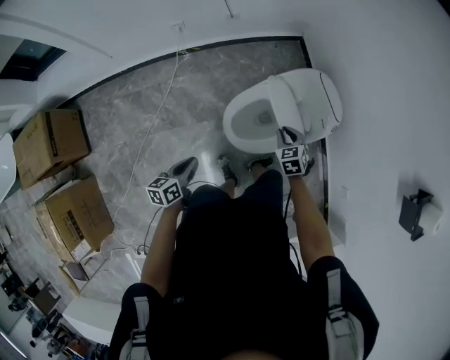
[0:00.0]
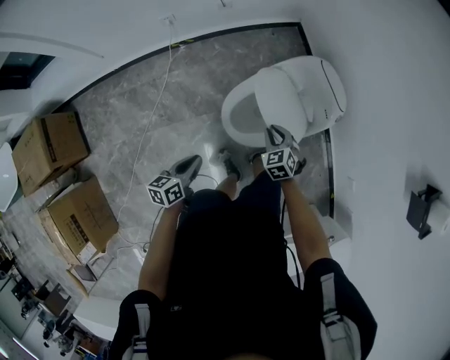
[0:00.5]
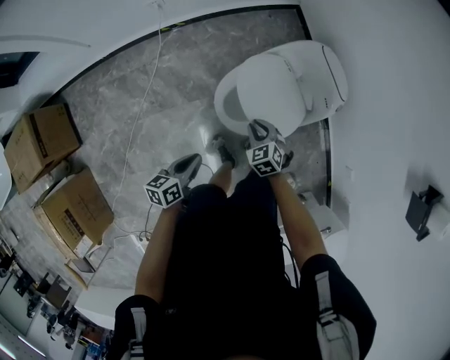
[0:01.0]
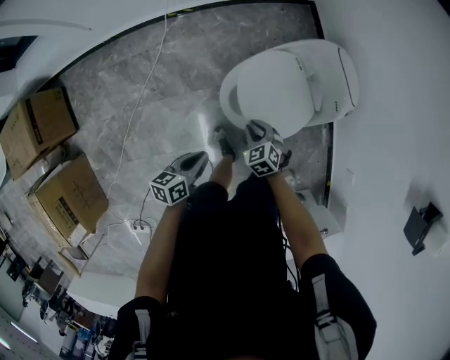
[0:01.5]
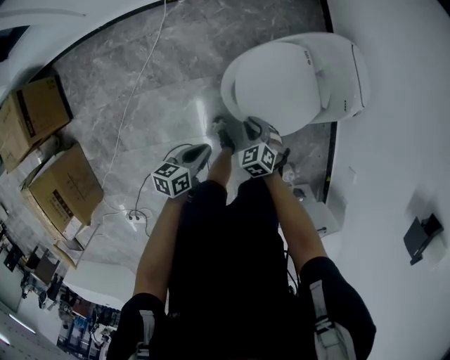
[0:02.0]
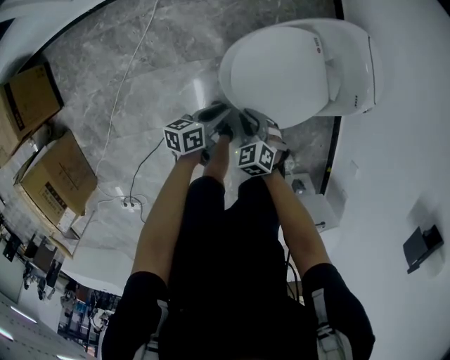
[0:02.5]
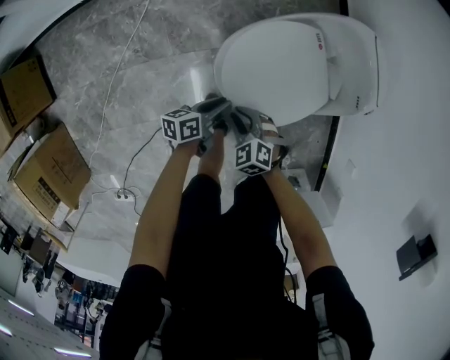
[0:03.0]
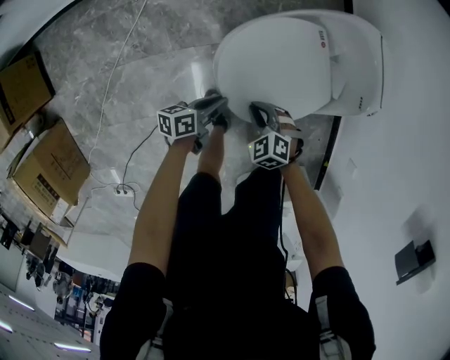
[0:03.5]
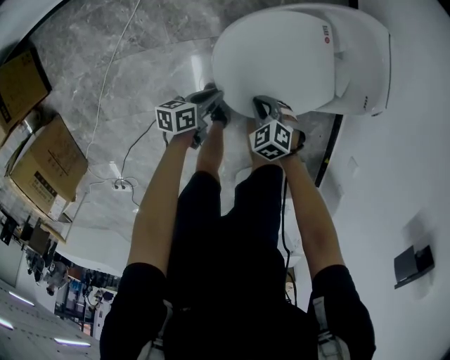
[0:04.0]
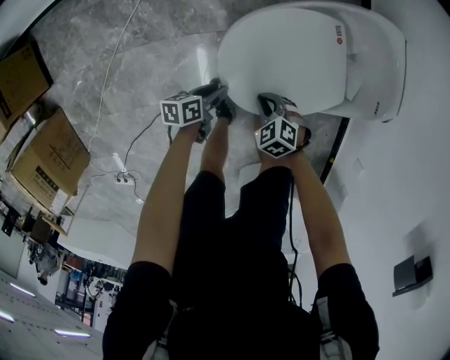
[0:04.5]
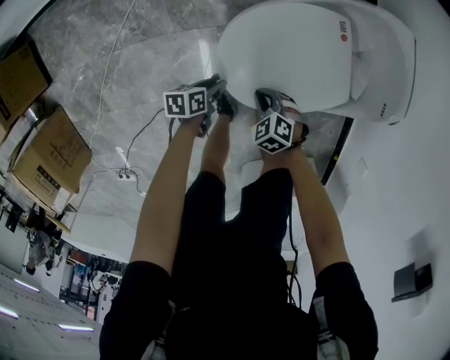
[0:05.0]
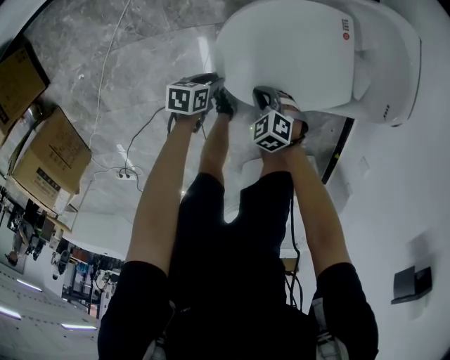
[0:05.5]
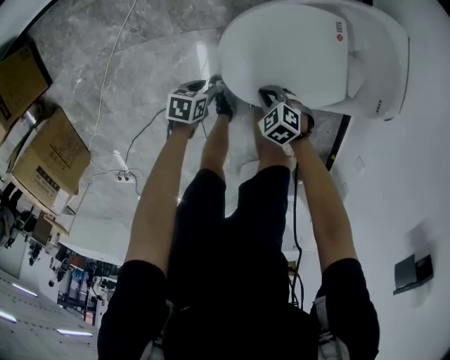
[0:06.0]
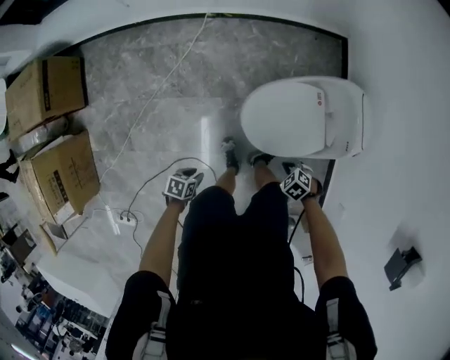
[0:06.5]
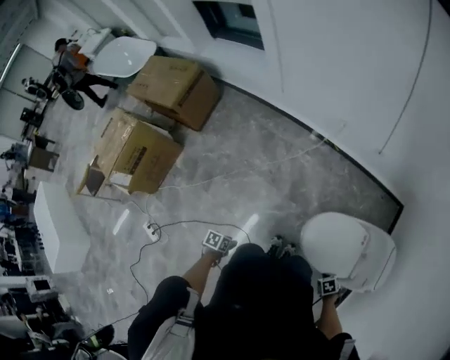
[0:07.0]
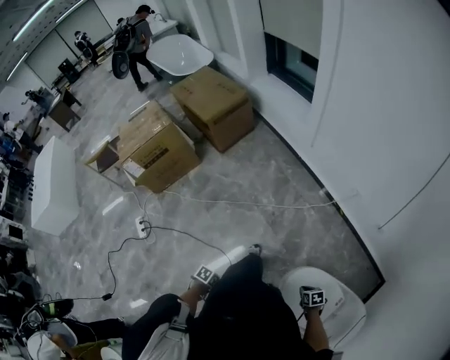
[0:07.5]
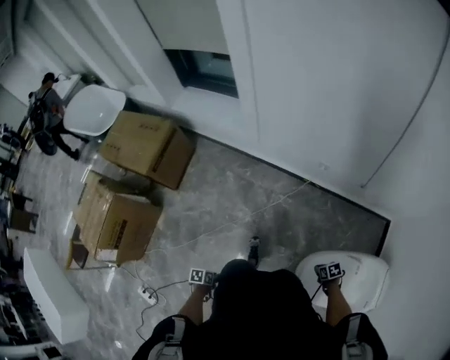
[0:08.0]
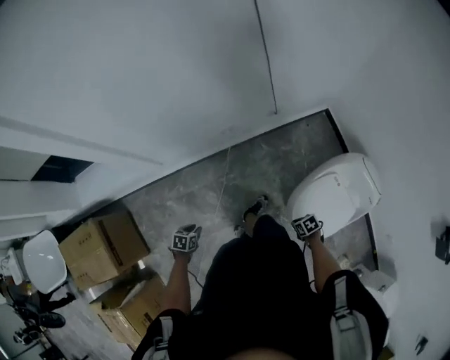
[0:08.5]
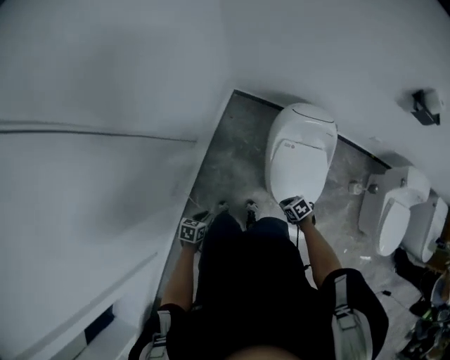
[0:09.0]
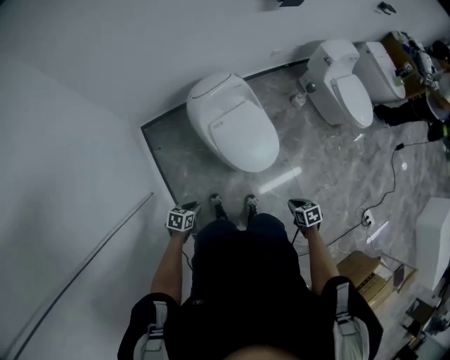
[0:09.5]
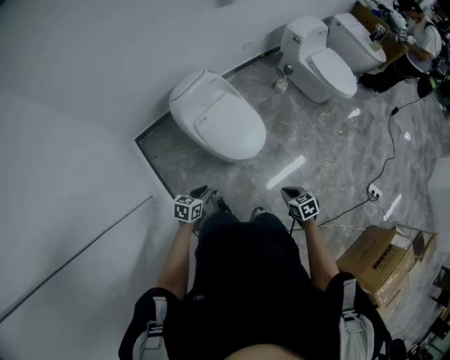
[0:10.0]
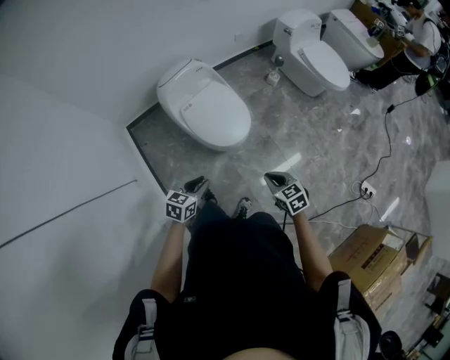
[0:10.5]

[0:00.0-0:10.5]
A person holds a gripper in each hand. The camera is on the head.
0:00.0 to 0:02.0: The left gripper goes some 15 cm downward and to the right, while the right gripper is displaced downward, to the left and backward by about 20 cm, and swivels some 20 degrees.
0:02.0 to 0:04.0: The right gripper travels downward by approximately 10 cm, while the left gripper shifts some 20 cm downward and forward.
0:04.0 to 0:06.5: The right gripper shifts some 10 cm upward; the left gripper shifts by some 30 cm, and rotates approximately 30 degrees.
0:06.5 to 0:08.5: The right gripper ends up about 35 cm from where it was, and twists some 60 degrees clockwise, seen from behind, while the left gripper changes place by some 60 cm, and rotates about 20 degrees.
0:08.5 to 0:10.5: The right gripper shifts about 20 cm upward, and changes its angle by roughly 100 degrees; the left gripper shifts by some 40 cm, and rolls clockwise, seen from behind, by about 90 degrees.

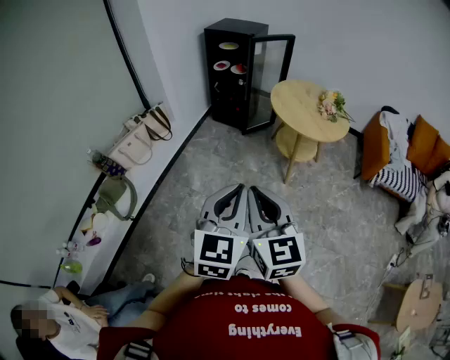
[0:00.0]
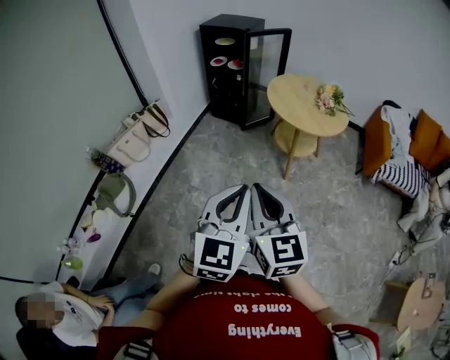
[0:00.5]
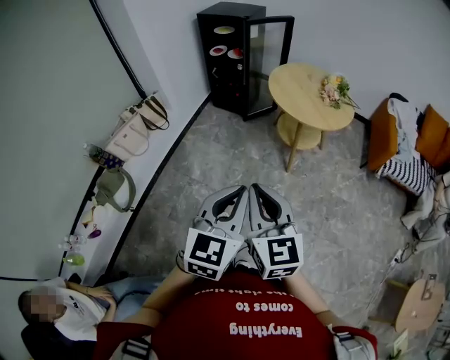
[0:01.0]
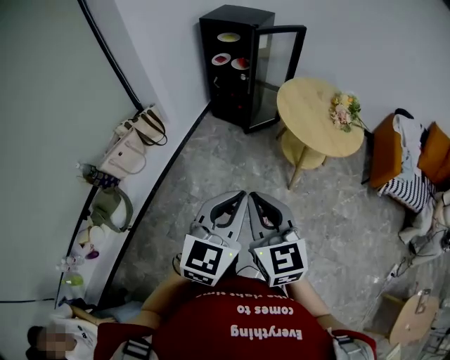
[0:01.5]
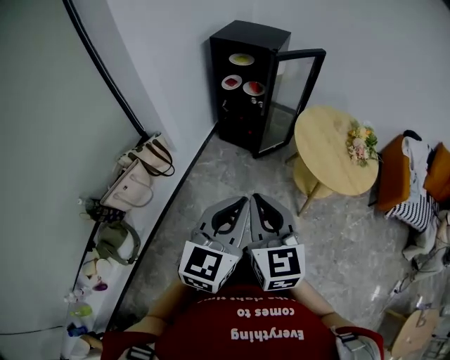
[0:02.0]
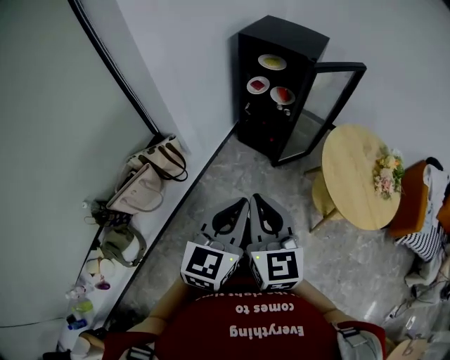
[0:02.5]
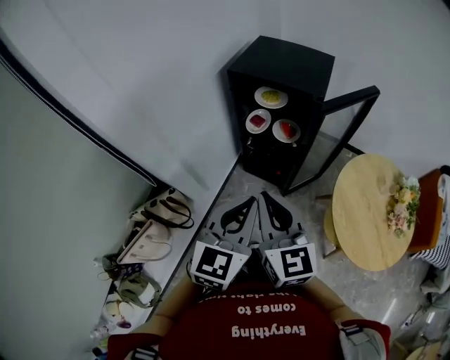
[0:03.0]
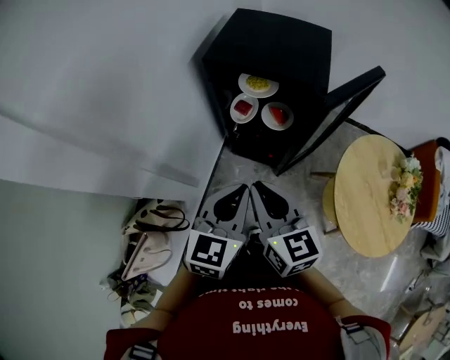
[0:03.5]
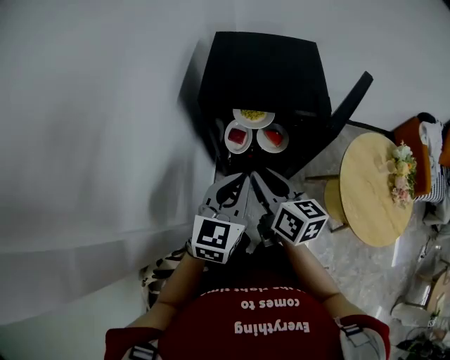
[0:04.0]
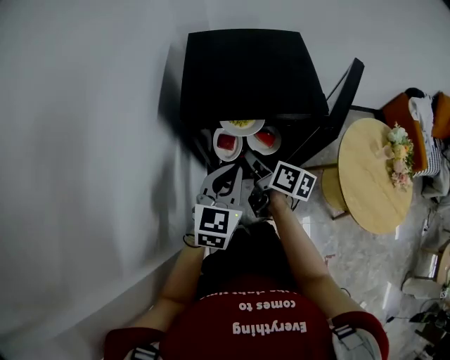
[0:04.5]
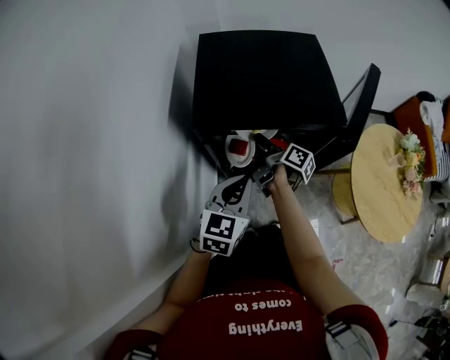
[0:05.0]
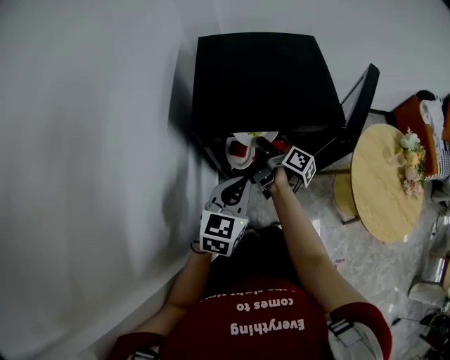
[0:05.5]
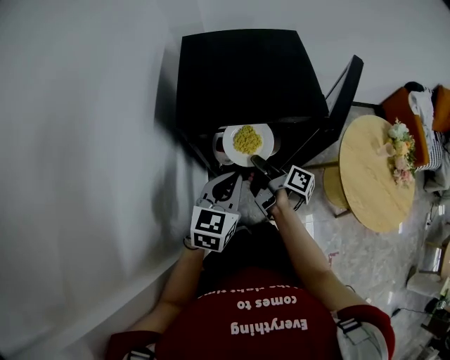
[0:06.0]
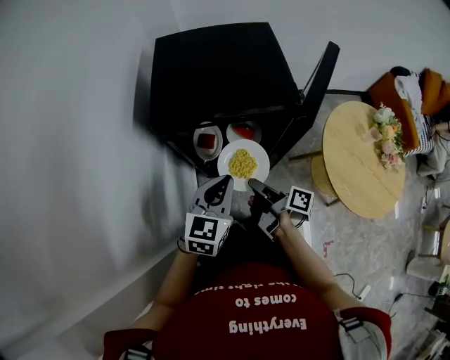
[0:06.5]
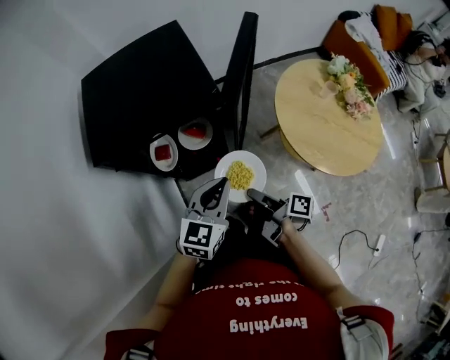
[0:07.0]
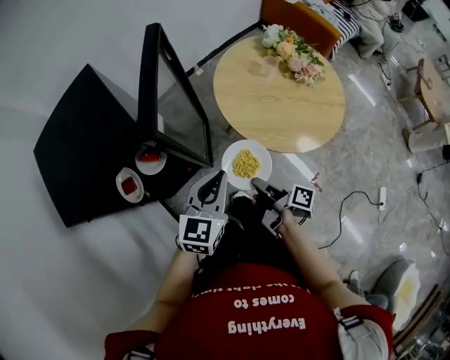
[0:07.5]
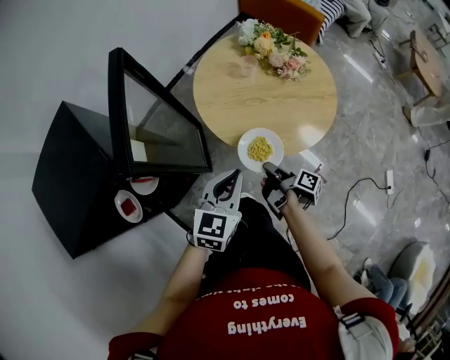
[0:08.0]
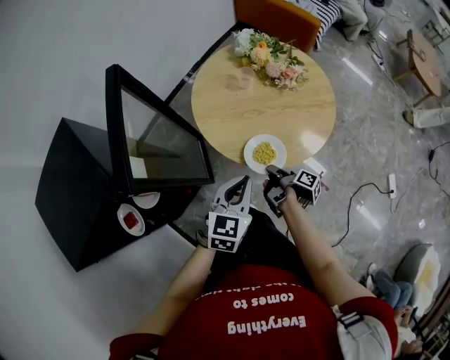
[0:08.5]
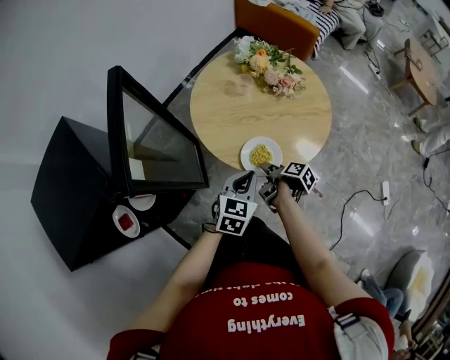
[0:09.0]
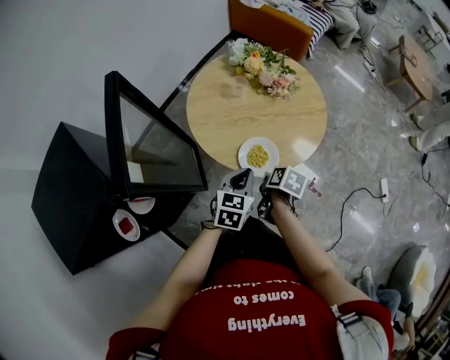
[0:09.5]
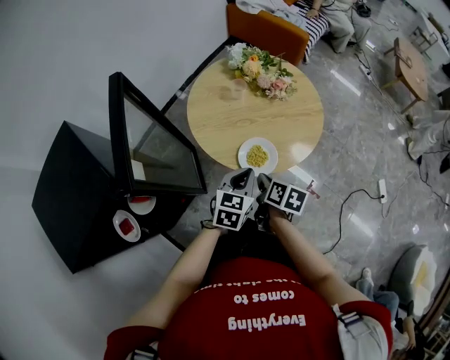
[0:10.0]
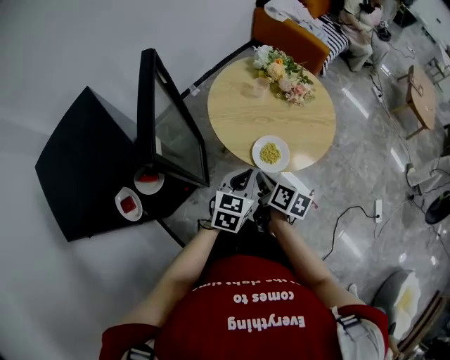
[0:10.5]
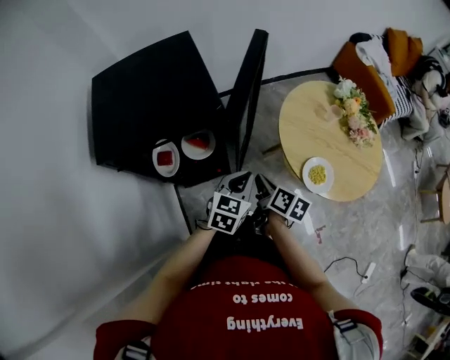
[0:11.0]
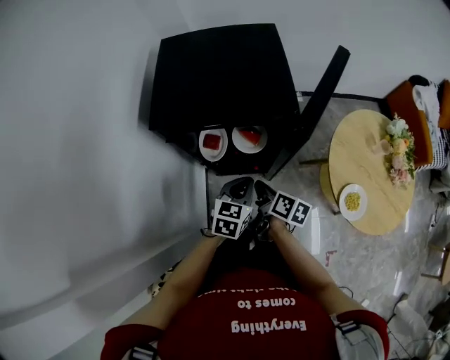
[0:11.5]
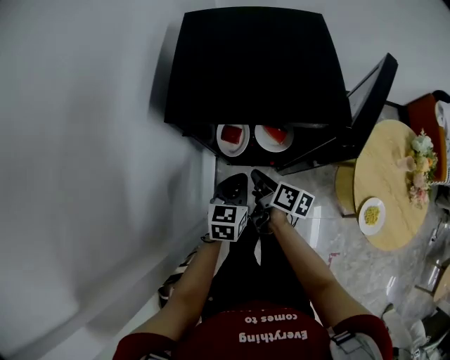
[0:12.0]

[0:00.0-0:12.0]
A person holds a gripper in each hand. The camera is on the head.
0:00.0 to 0:02.0: The left gripper changes place by some 35 cm.
0:02.0 to 0:04.0: The left gripper changes place by some 60 cm.
0:04.0 to 0:06.0: The left gripper shifts about 10 cm downward.
0:06.0 to 0:08.0: The left gripper moves some 40 cm, and changes its angle by about 50 degrees.
0:08.0 to 0:10.0: The left gripper changes place by some 10 cm.
0:10.0 to 0:12.0: The left gripper ends up about 50 cm from where it was, and turns by some 70 degrees.

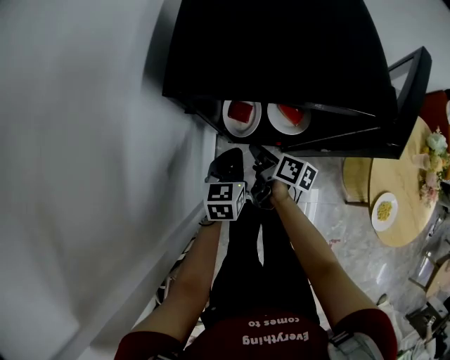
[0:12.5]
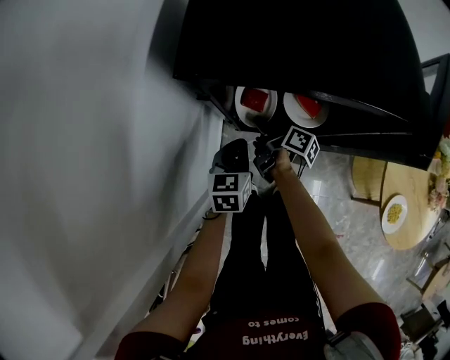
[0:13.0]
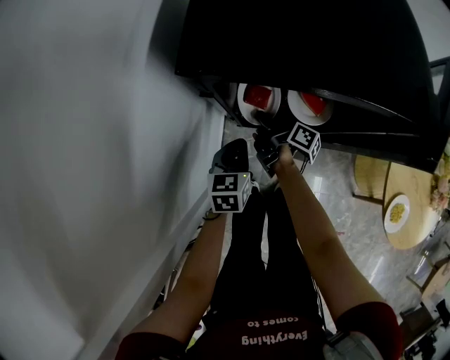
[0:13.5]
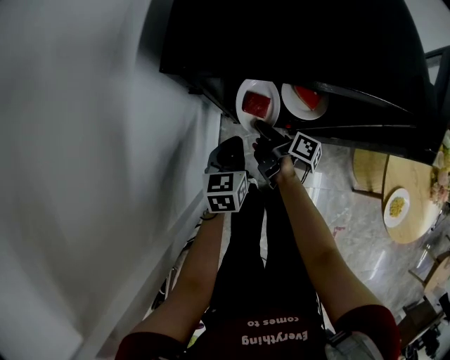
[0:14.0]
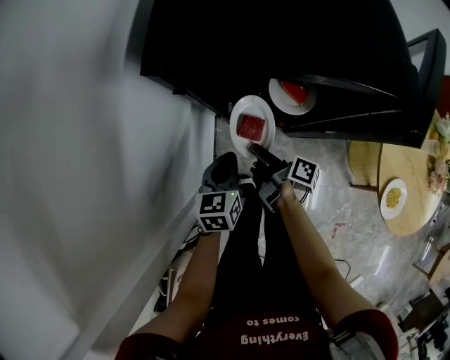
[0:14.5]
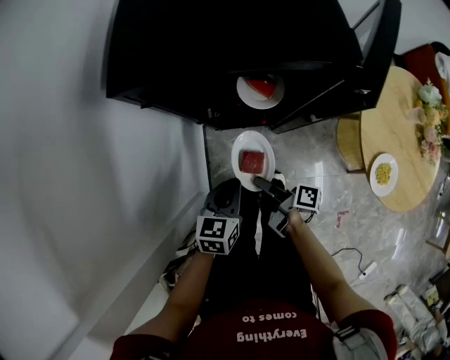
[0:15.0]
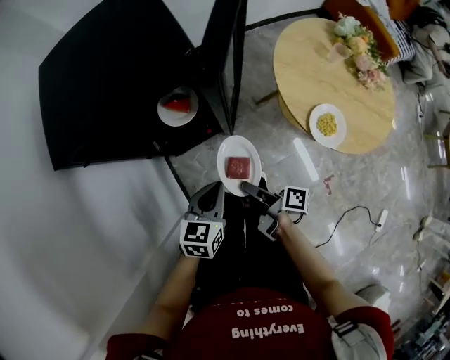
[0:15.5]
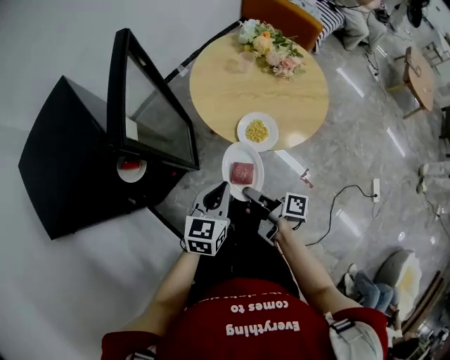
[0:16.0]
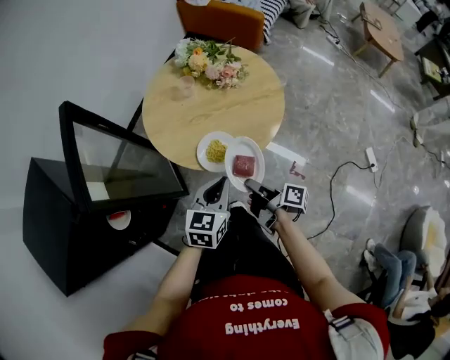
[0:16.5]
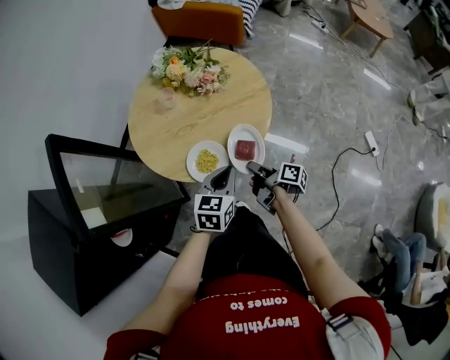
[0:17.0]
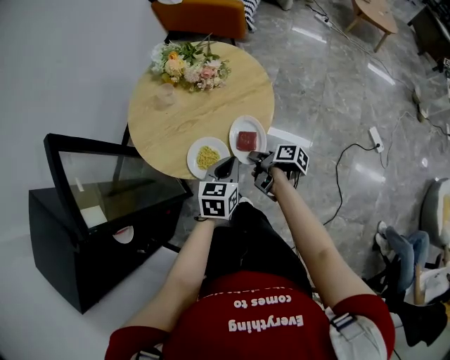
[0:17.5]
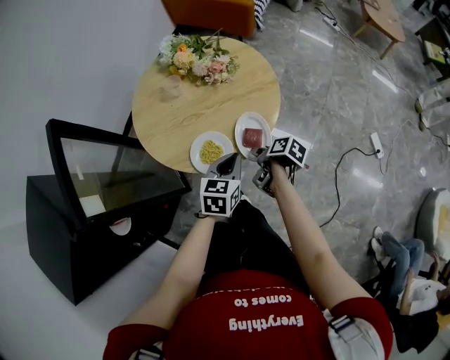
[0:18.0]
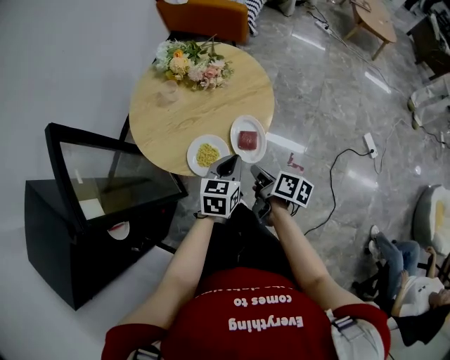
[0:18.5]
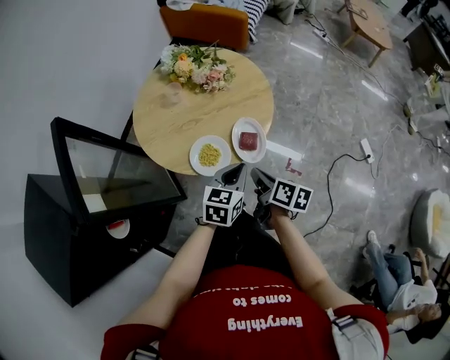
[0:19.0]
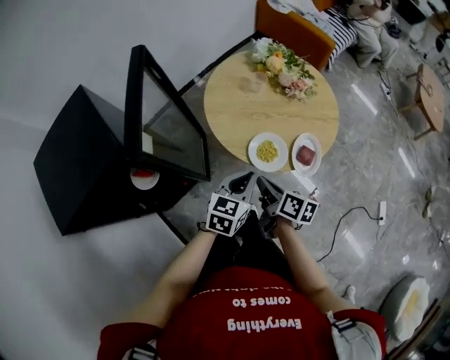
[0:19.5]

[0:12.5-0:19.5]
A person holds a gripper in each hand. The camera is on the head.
0:12.5 to 0:14.5: The left gripper shifts by approximately 5 cm.
0:14.5 to 0:16.0: The left gripper changes place by some 40 cm, and turns by approximately 60 degrees.
0:16.0 to 0:17.5: The left gripper shifts by approximately 25 cm, and changes its angle by roughly 20 degrees.
0:17.5 to 0:19.5: The left gripper changes place by approximately 15 cm.
